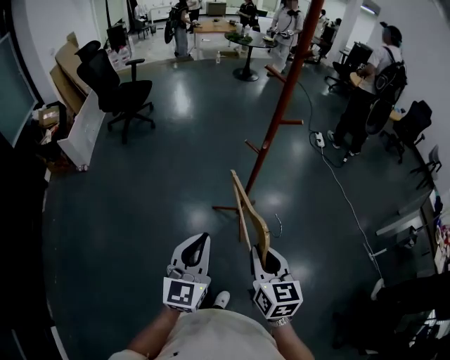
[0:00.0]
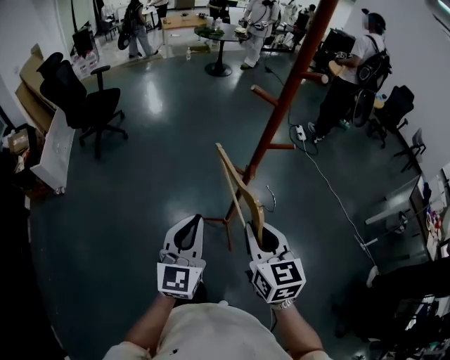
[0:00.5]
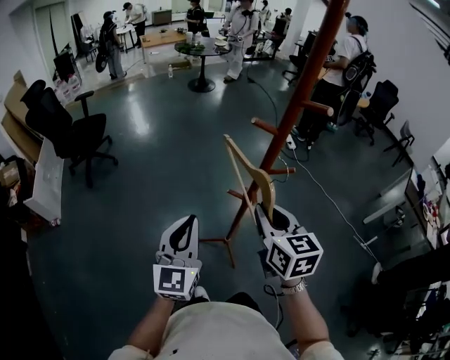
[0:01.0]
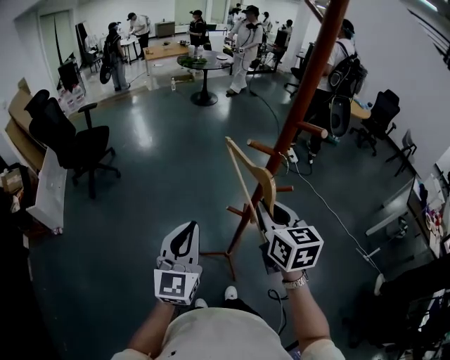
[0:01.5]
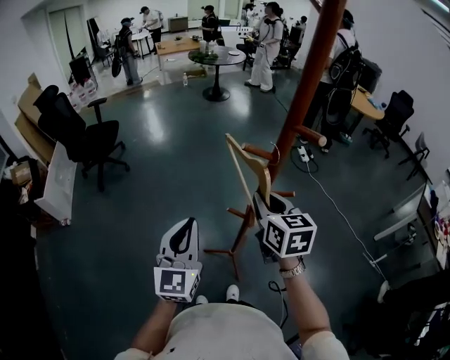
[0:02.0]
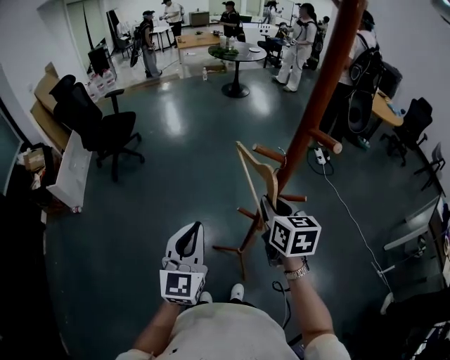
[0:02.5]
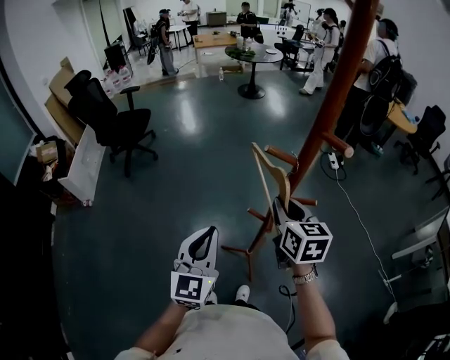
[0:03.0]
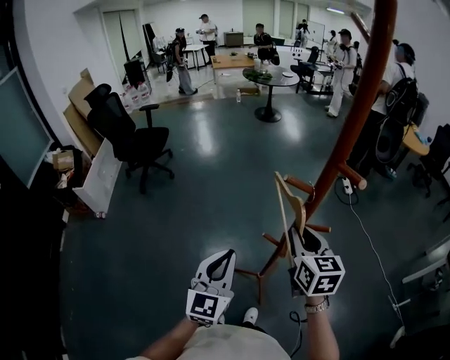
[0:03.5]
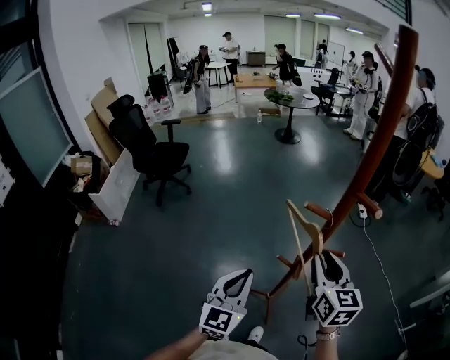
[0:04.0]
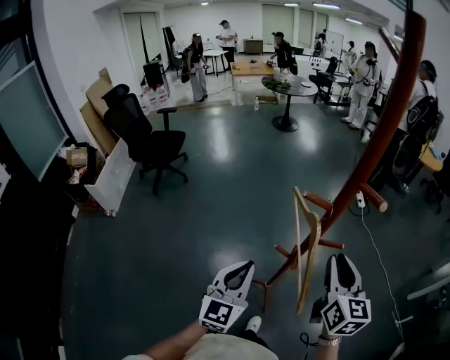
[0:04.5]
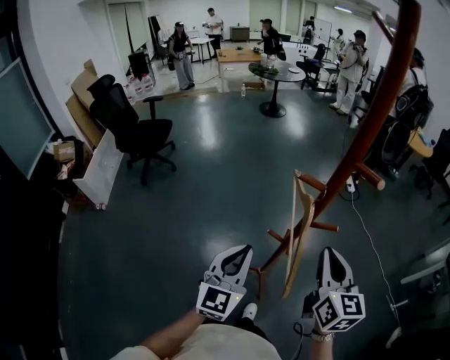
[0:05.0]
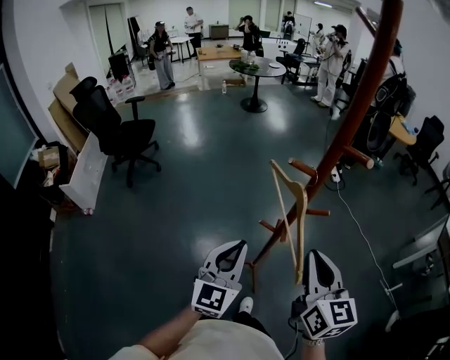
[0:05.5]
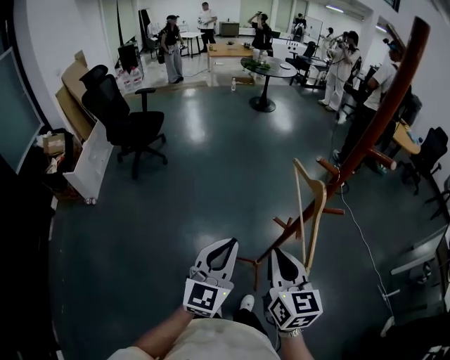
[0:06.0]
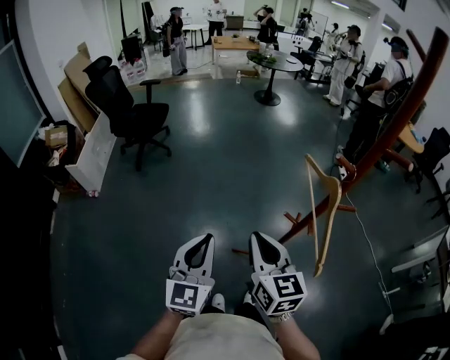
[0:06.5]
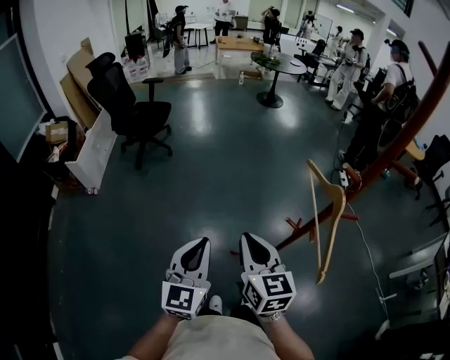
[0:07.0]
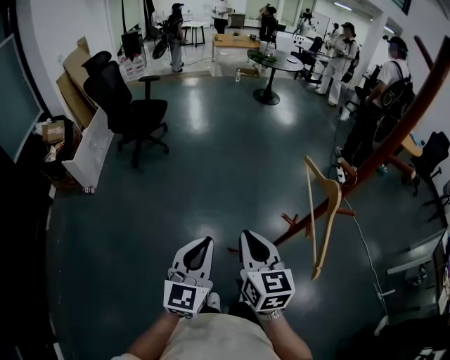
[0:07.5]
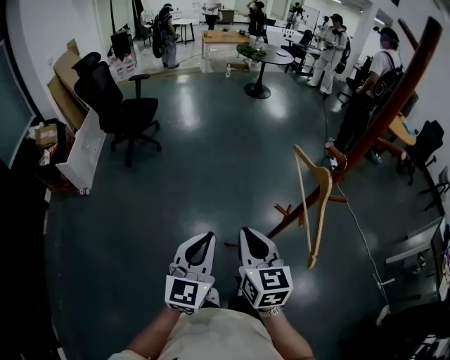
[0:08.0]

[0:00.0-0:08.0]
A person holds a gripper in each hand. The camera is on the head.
0:00.0 to 0:02.0: Both grippers move forward, about 40 cm.
0:02.0 to 0:04.0: The grippers move only a little.
0:04.0 to 0:06.0: The left gripper travels to the left by some 5 cm. Meanwhile the right gripper travels to the left and backward by about 20 cm.
0:06.0 to 0:08.0: Both grippers move to the left, approximately 10 cm.

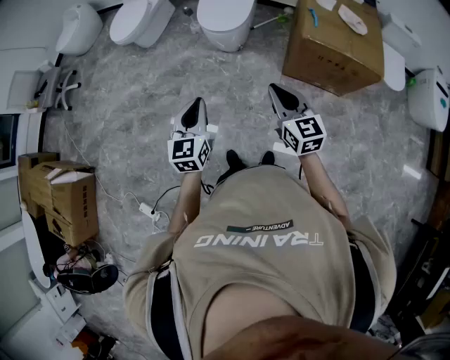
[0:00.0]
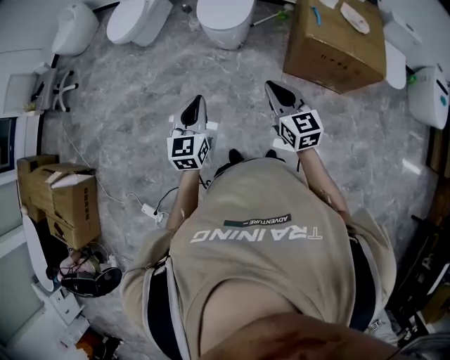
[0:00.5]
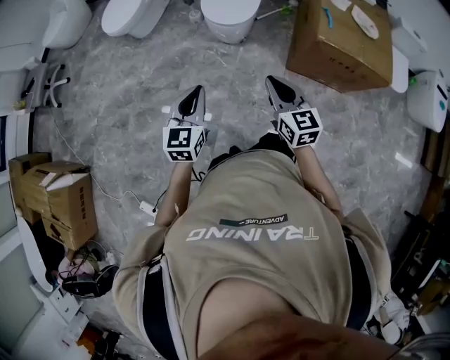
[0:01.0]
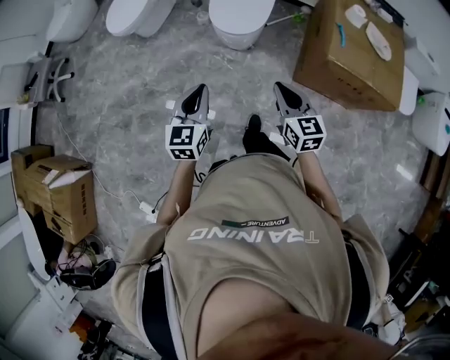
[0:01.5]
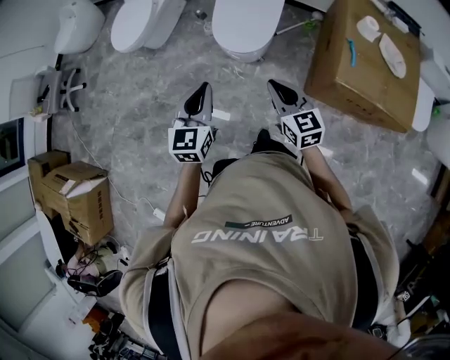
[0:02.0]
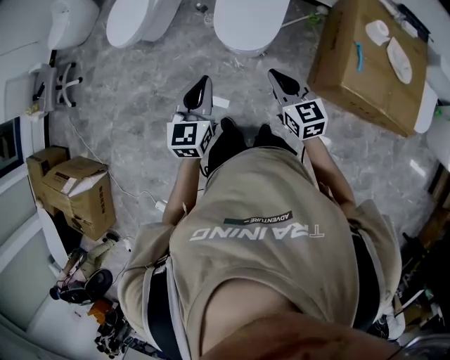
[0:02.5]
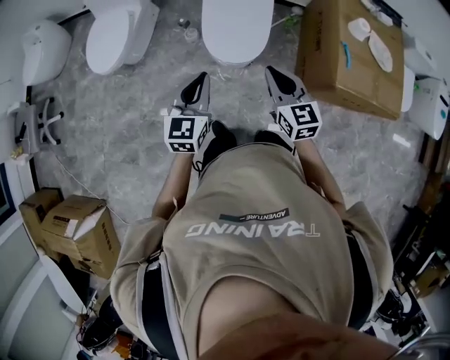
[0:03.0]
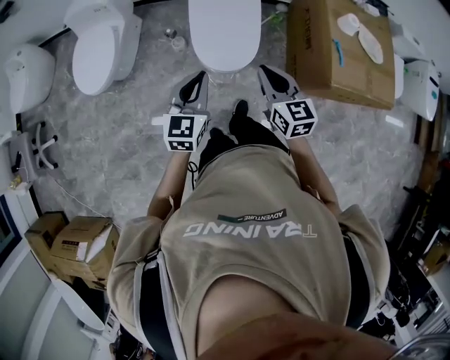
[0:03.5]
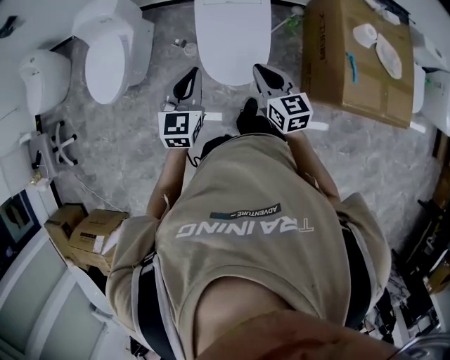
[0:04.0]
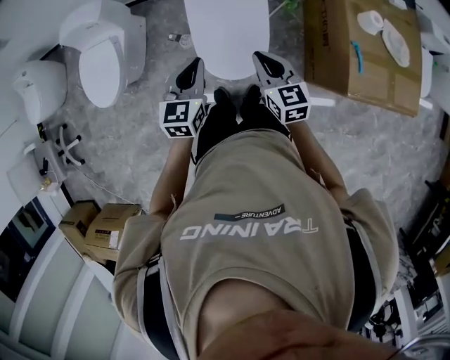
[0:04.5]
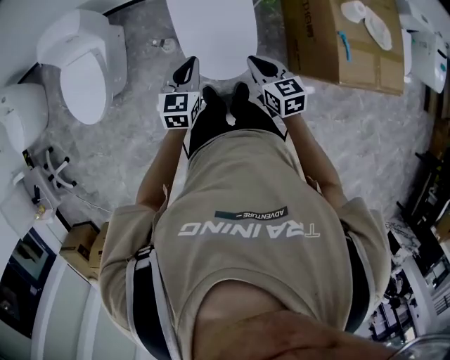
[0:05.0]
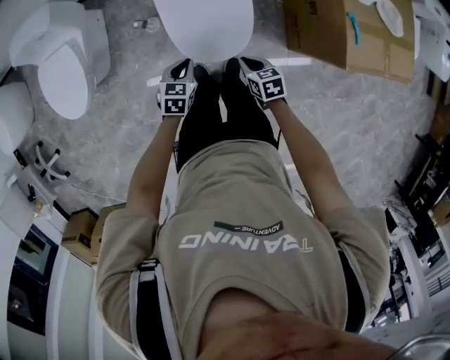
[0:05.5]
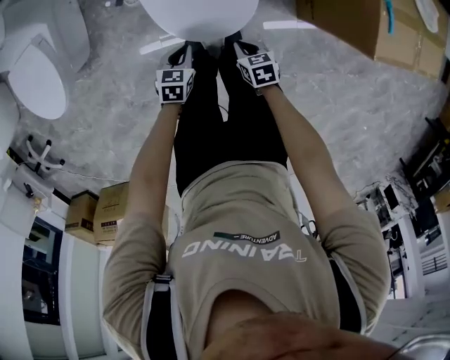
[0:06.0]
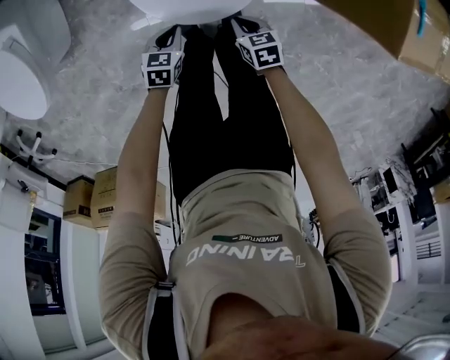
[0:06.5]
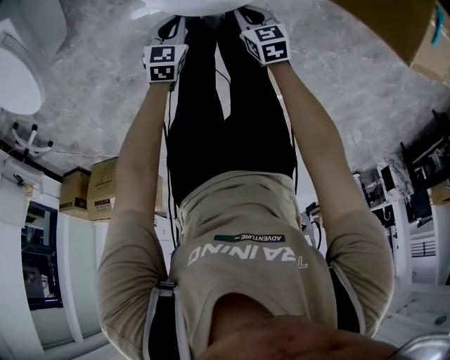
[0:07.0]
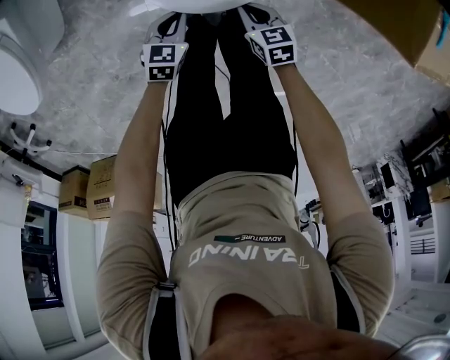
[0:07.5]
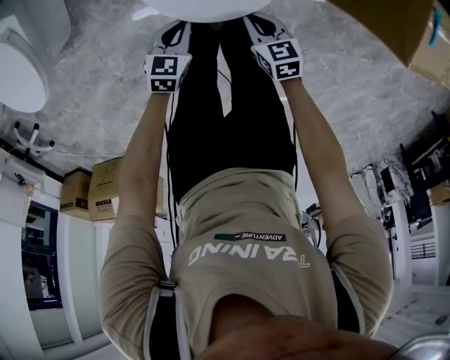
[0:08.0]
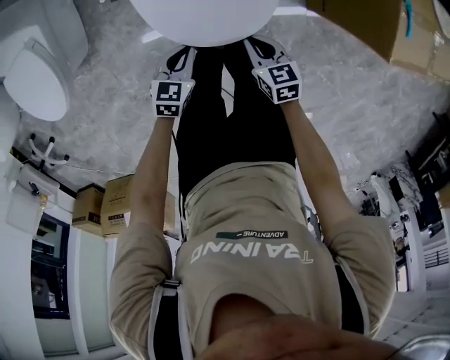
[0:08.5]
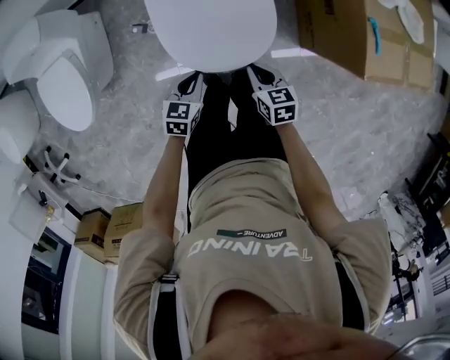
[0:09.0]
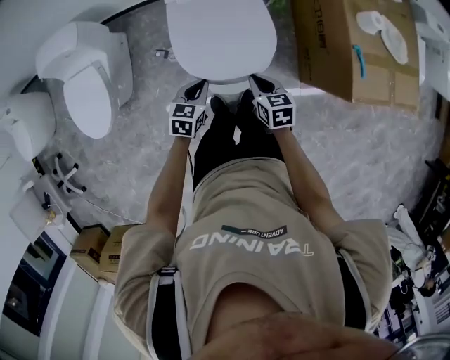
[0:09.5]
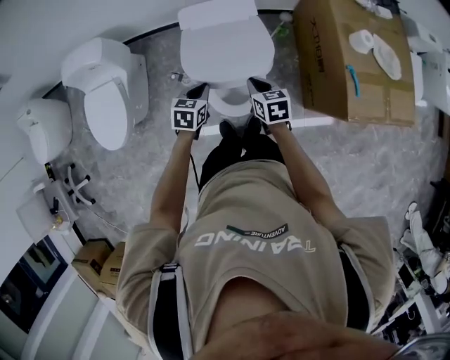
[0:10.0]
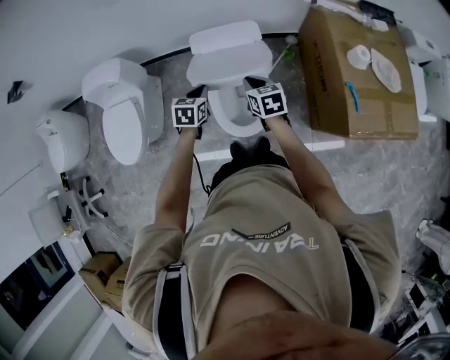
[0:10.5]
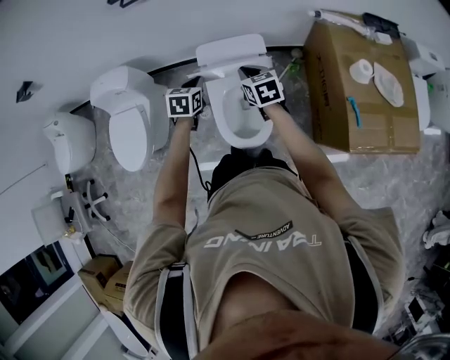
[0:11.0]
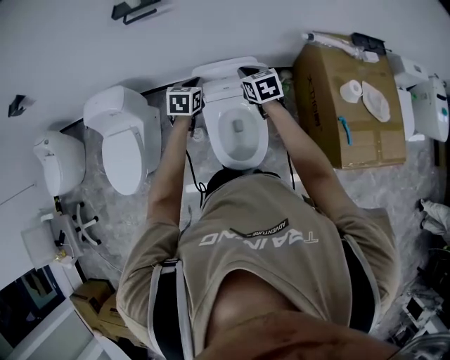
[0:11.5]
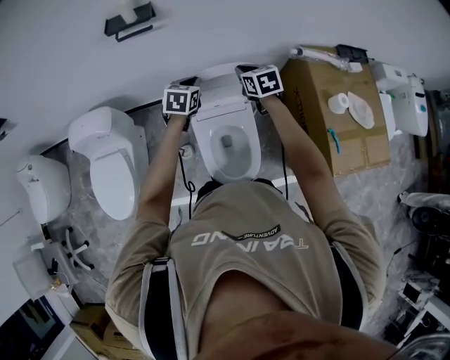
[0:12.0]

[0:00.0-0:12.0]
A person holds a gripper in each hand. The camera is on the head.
0:00.0 to 0:02.0: Both grippers move forward, roughly 35 cm.
0:02.0 to 0:04.0: The grippers both shift forward by roughly 30 cm.
0:04.0 to 0:06.0: The grippers both shift downward by roughly 40 cm. The right gripper angles its fingers downward, by approximately 40 degrees, while the left gripper points its fingers roughly 30 degrees further downward.
0:06.0 to 0:08.0: The right gripper travels downward and back again, some 10 cm each way.
0:08.0 to 0:10.0: The two grippers go some 35 cm upward and forward.
0:10.0 to 0:12.0: The two grippers go roughly 35 cm forward and upward.

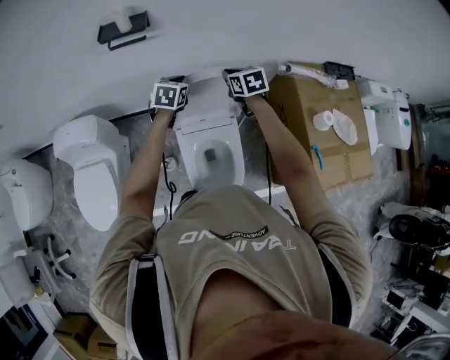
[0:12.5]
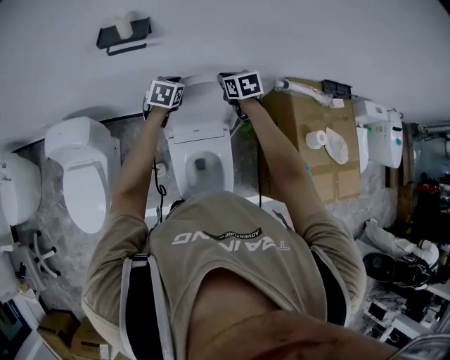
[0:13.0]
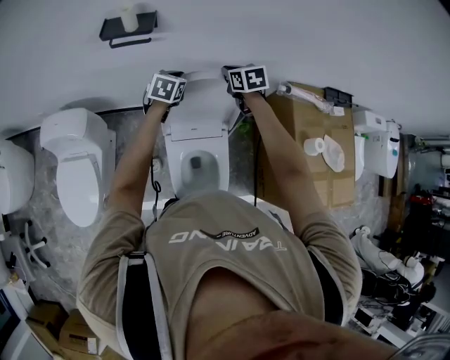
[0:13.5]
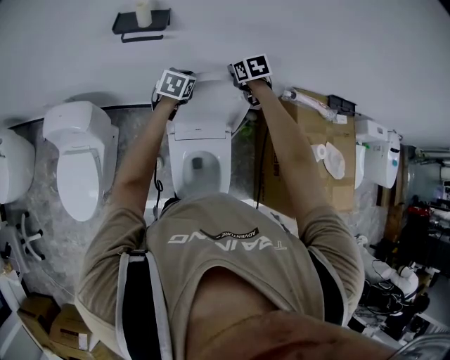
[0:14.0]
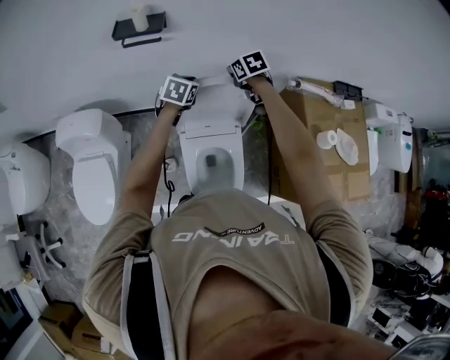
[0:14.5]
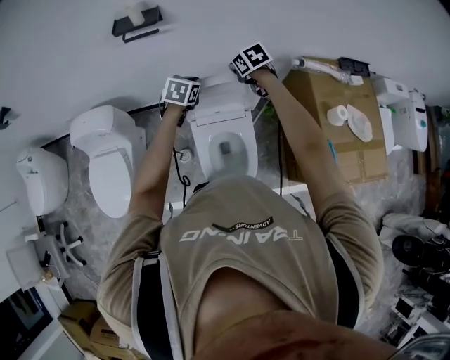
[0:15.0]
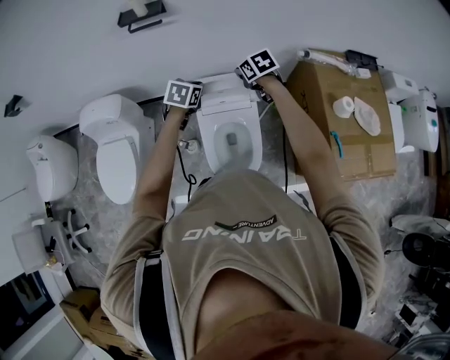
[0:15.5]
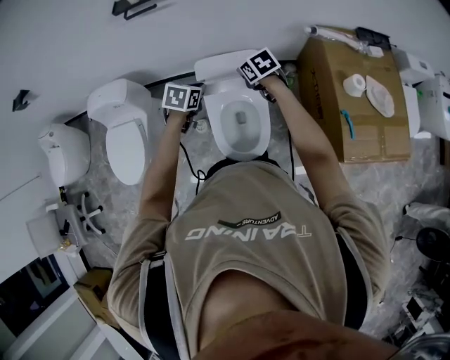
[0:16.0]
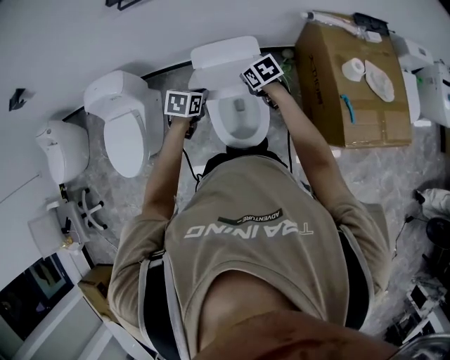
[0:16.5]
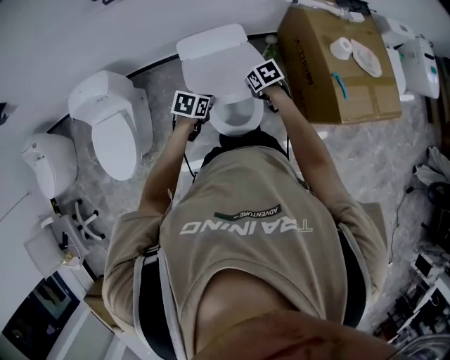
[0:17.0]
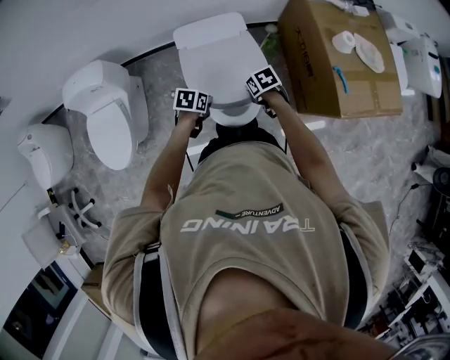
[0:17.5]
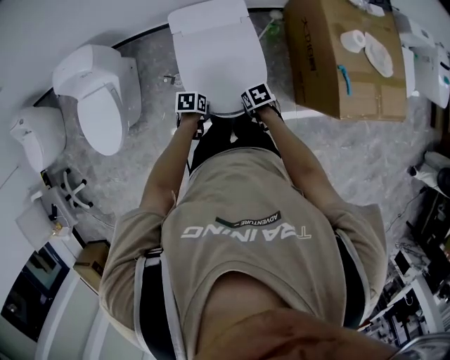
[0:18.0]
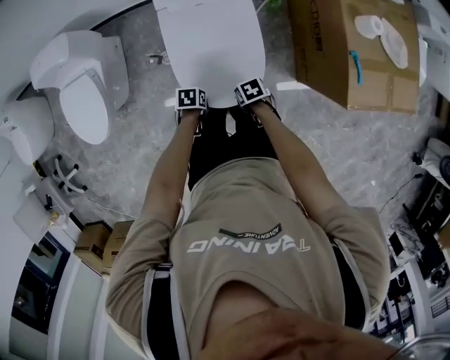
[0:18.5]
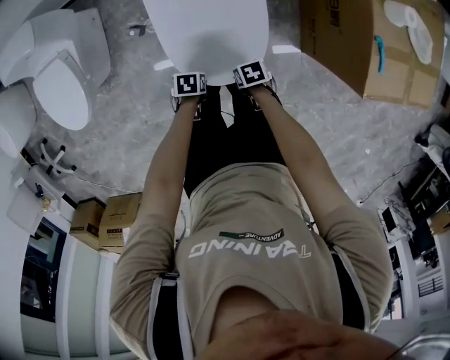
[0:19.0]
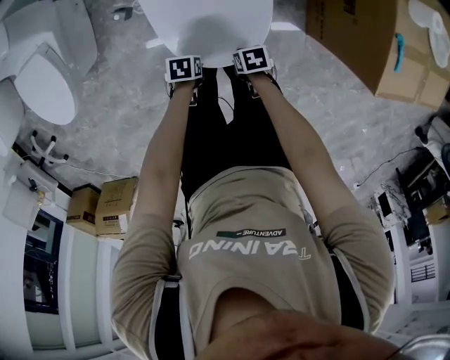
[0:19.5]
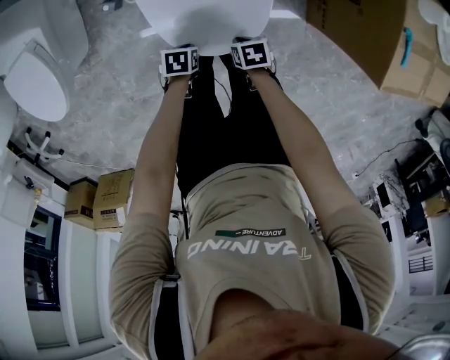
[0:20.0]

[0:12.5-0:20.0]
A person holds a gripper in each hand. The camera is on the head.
0:12.5 to 0:14.5: The right gripper travels forward by some 5 cm.
0:14.5 to 0:16.5: Both grippers travel together backward, approximately 30 cm.
0:16.5 to 0:18.0: The left gripper travels downward by about 20 cm, and rotates some 30 degrees, while the right gripper shifts by about 25 cm, and swivels roughly 20 degrees.
0:18.0 to 0:20.0: Both grippers move downward, some 20 cm.
